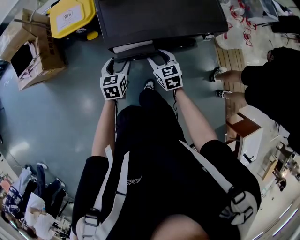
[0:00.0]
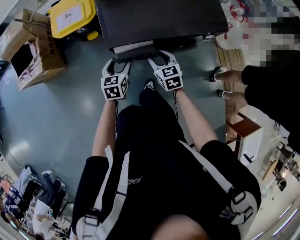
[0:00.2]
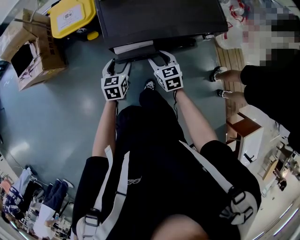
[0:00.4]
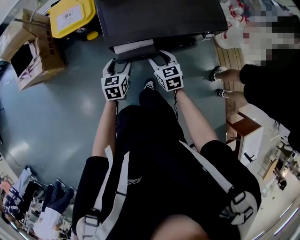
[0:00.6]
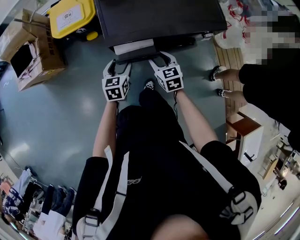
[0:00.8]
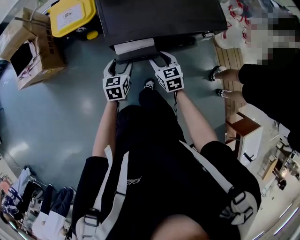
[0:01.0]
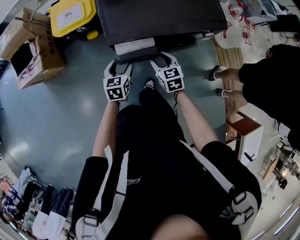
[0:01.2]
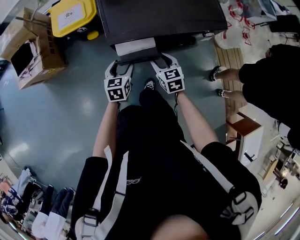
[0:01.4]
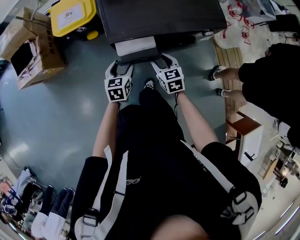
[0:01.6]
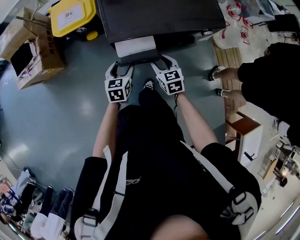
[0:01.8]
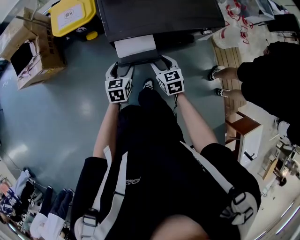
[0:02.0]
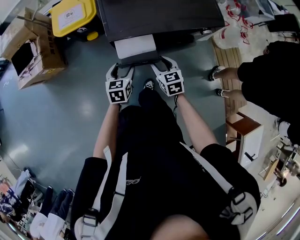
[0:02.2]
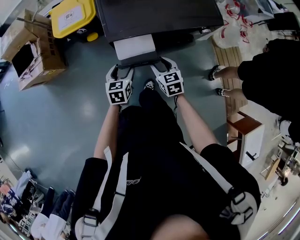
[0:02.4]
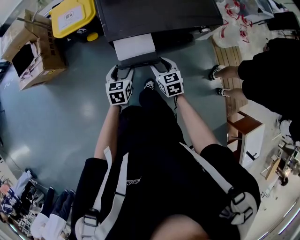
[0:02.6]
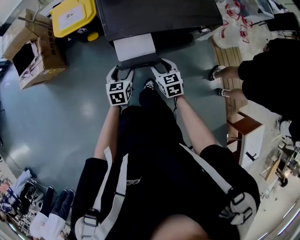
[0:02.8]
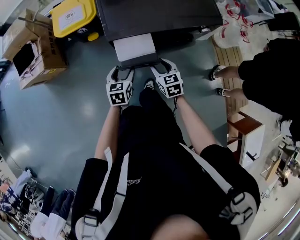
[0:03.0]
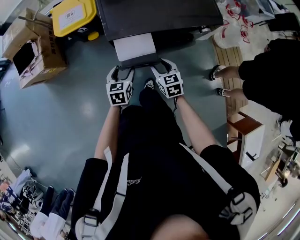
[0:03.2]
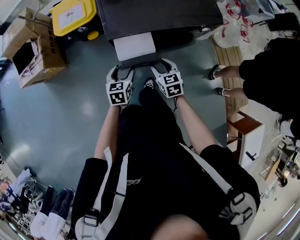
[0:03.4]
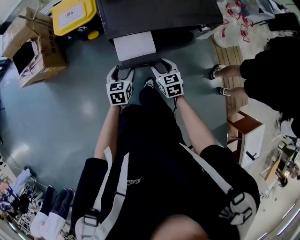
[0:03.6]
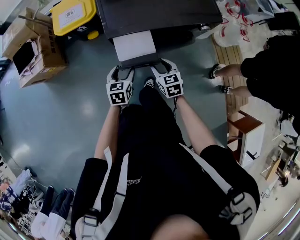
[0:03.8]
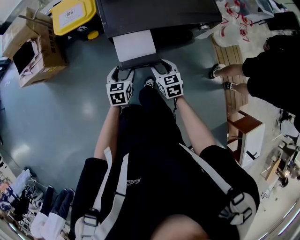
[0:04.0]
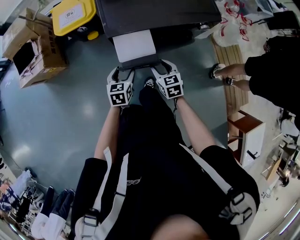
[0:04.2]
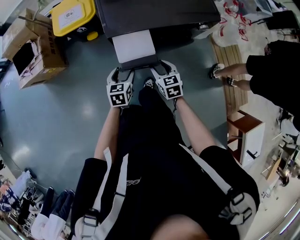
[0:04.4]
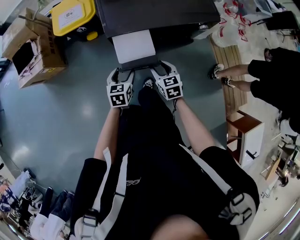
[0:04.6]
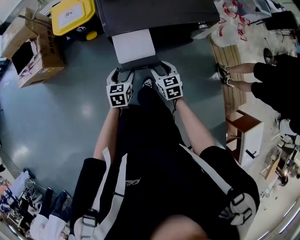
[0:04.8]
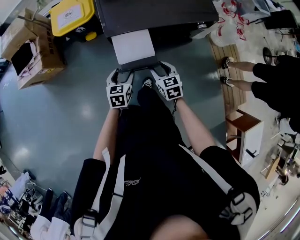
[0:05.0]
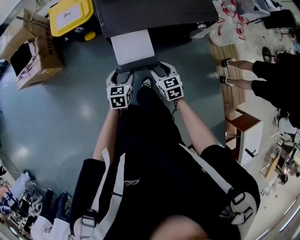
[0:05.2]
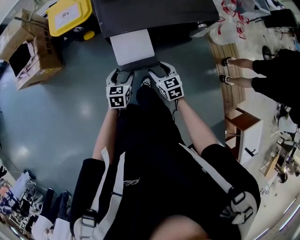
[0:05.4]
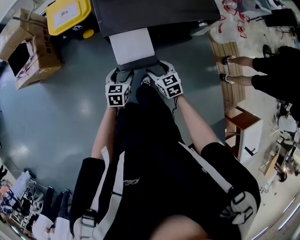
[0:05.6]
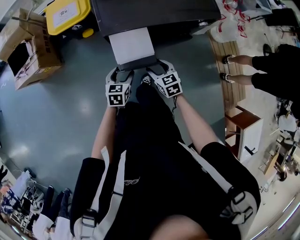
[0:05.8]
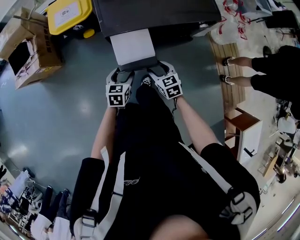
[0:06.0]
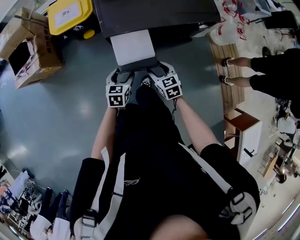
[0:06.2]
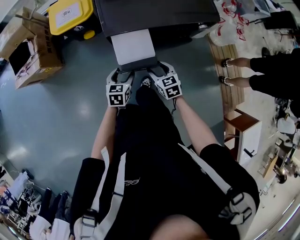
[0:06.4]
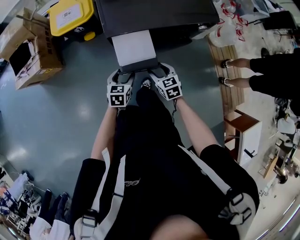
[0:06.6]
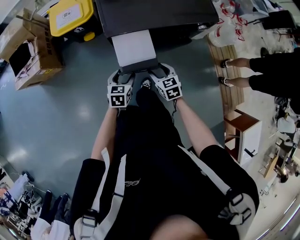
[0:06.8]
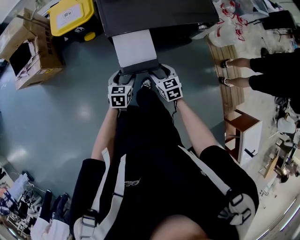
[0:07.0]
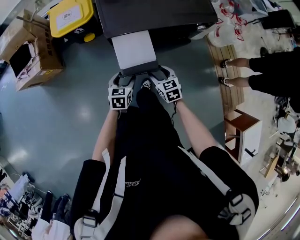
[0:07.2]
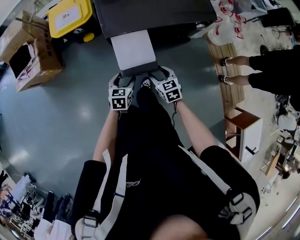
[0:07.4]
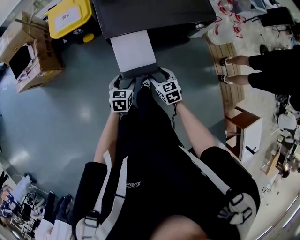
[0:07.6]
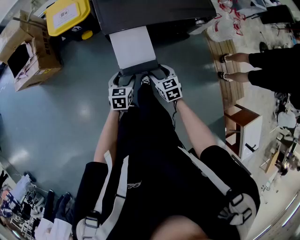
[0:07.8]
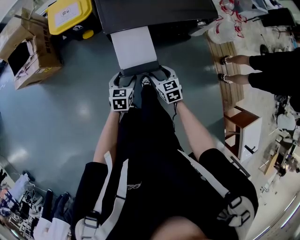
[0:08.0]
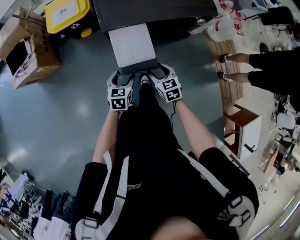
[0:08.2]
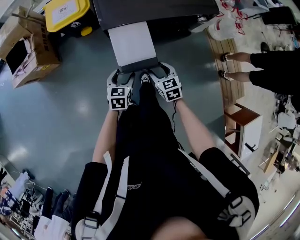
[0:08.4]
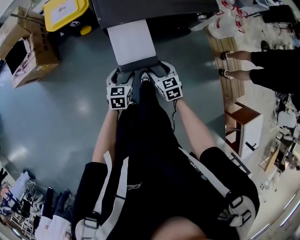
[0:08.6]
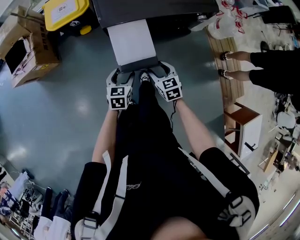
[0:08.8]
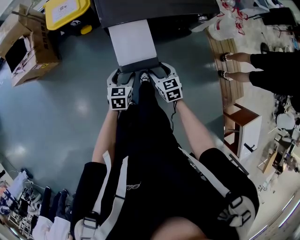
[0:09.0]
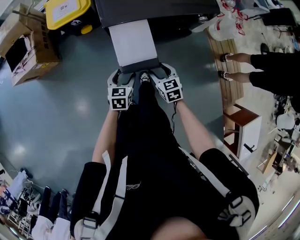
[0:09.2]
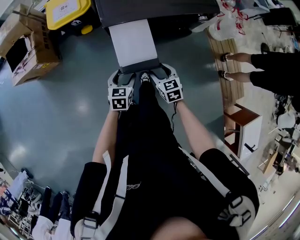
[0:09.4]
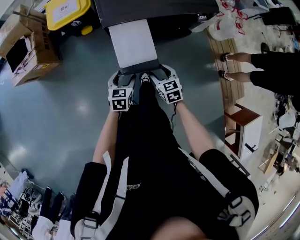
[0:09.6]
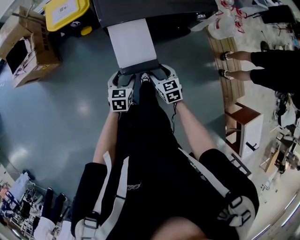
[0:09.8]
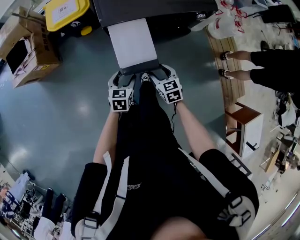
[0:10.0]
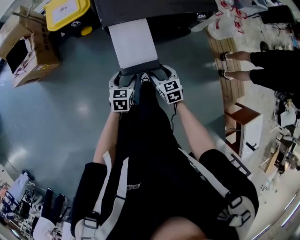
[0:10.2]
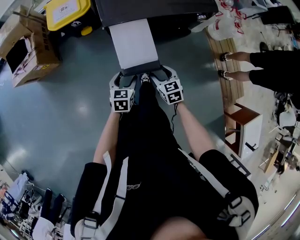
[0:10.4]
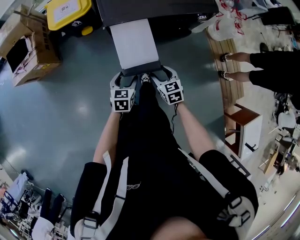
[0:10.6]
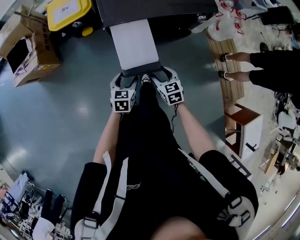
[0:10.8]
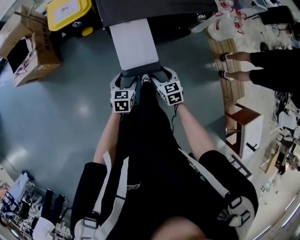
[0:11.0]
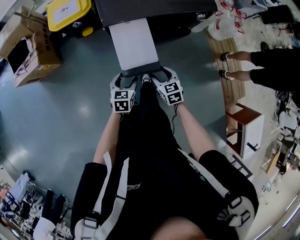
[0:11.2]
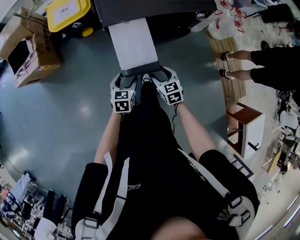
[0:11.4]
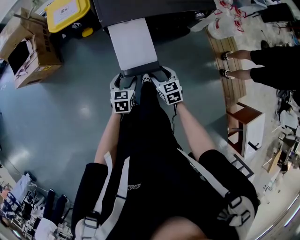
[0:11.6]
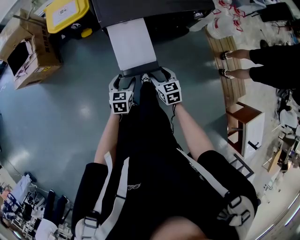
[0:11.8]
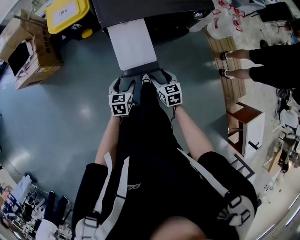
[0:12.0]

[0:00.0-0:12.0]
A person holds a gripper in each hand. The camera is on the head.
0.0 to 1.6 s: The grippers make only small movements.
1.6 to 3.0 s: The grippers stay close to where they were, moving slightly.
3.0 to 6.0 s: The grippers make only small movements.
6.0 to 7.6 s: The grippers make only small movements.
7.6 to 9.0 s: Both grippers stay put.
9.0 to 12.0 s: The grippers stay close to where they were, moving slightly.

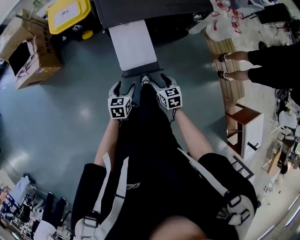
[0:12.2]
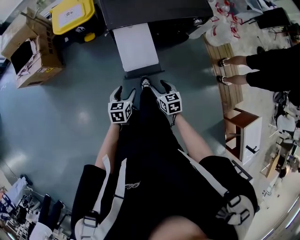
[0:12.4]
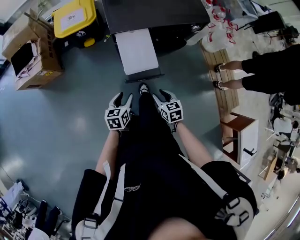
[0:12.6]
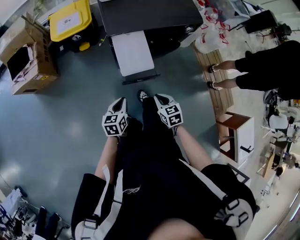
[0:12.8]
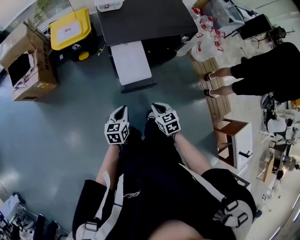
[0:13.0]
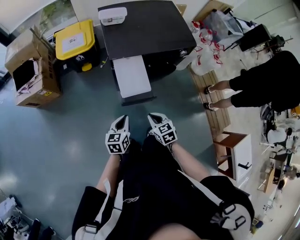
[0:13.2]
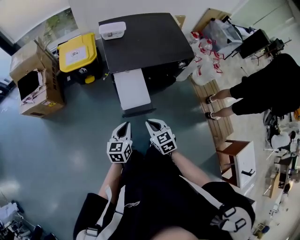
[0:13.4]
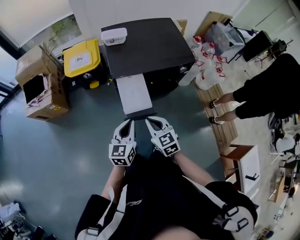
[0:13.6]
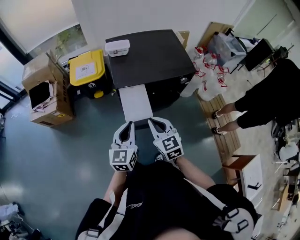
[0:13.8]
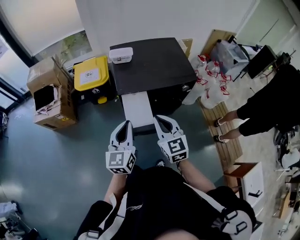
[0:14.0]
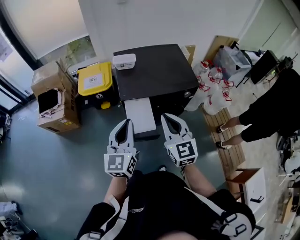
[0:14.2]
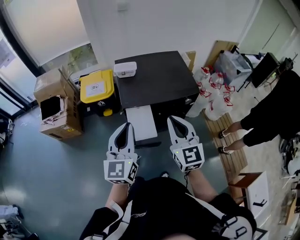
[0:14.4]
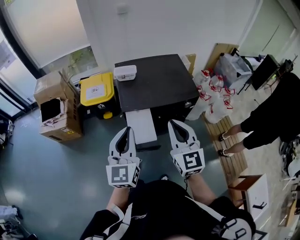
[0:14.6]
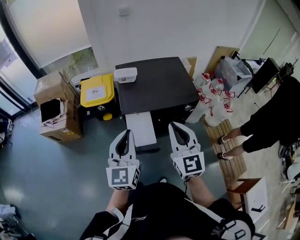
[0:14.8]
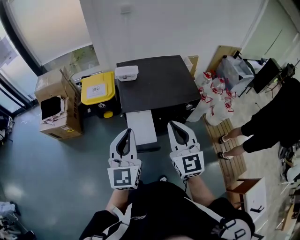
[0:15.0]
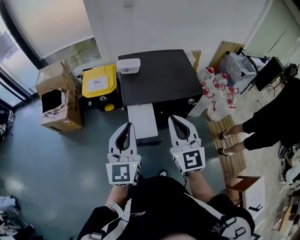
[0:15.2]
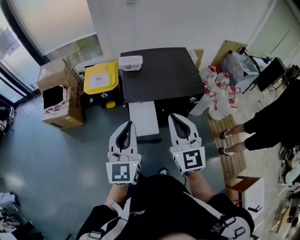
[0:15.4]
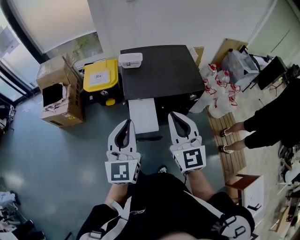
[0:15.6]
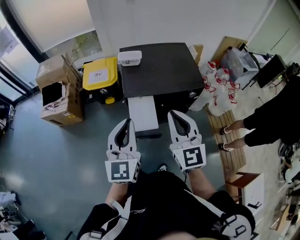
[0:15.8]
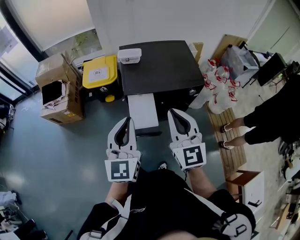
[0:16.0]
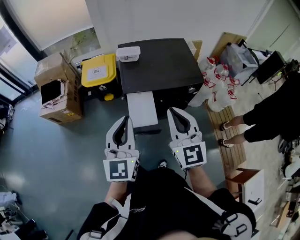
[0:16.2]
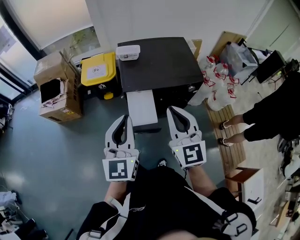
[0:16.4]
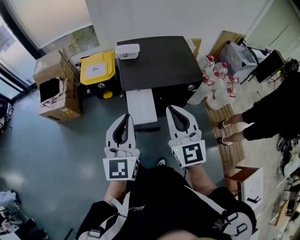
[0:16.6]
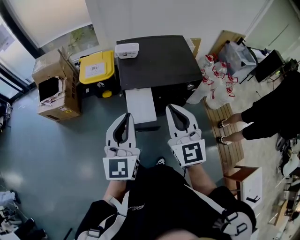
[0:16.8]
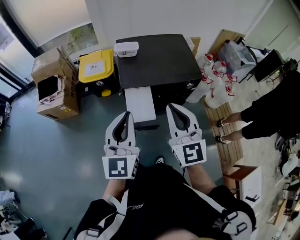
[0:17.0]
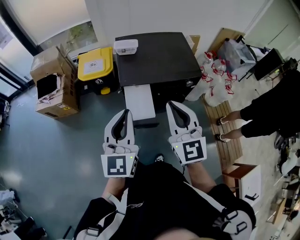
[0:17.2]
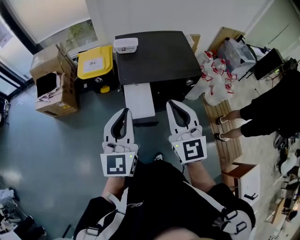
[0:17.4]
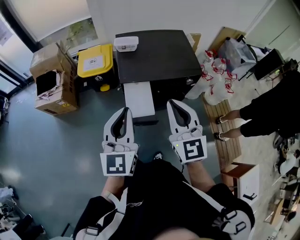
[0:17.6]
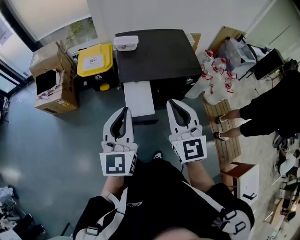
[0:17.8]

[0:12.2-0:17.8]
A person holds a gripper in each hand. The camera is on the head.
12.2 to 13.6 s: The grippers both shift upward by roughly 25 cm. The left gripper swivels approximately 30 degrees, and closes. The right gripper rotates approximately 20 degrees, and closes its fingers.
13.6 to 15.0 s: Both grippers move upward, about 25 cm. The left gripper rotates approximately 30 degrees; the right gripper rotates approximately 30 degrees.
15.0 to 16.4 s: The grippers move only a little.
16.4 to 17.8 s: Both grippers stay about where they are.

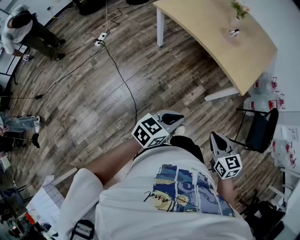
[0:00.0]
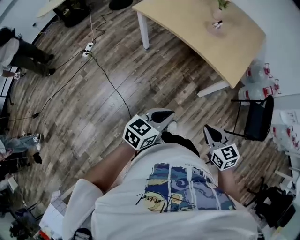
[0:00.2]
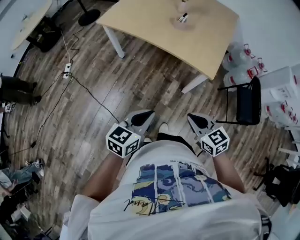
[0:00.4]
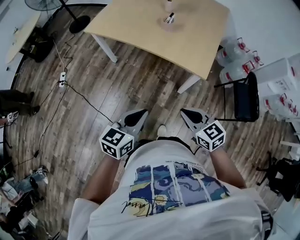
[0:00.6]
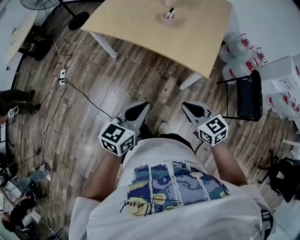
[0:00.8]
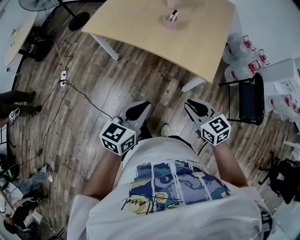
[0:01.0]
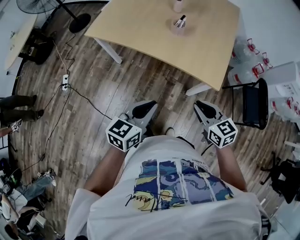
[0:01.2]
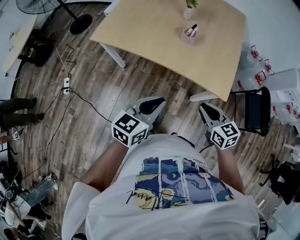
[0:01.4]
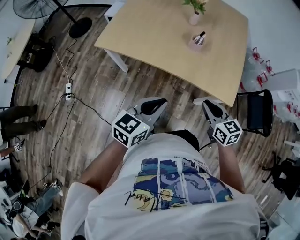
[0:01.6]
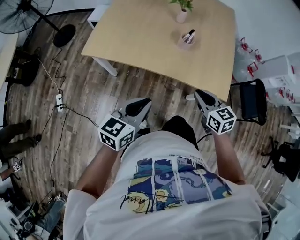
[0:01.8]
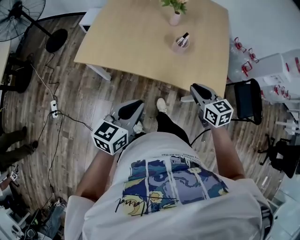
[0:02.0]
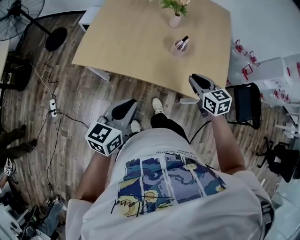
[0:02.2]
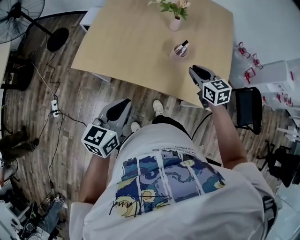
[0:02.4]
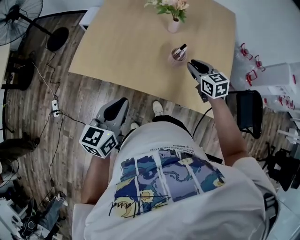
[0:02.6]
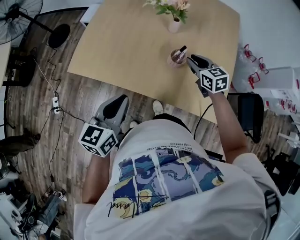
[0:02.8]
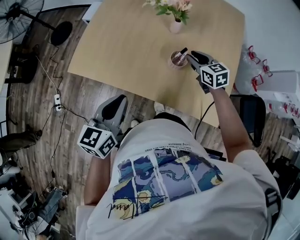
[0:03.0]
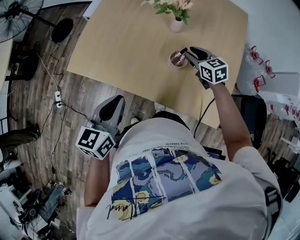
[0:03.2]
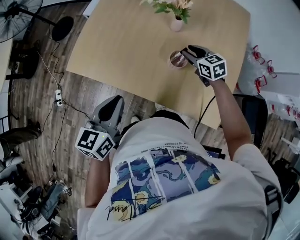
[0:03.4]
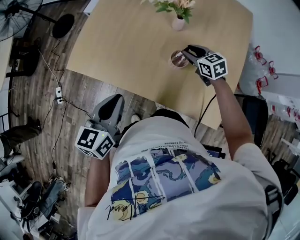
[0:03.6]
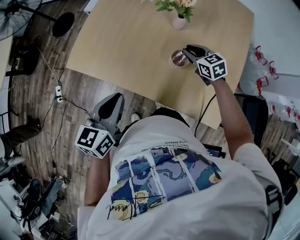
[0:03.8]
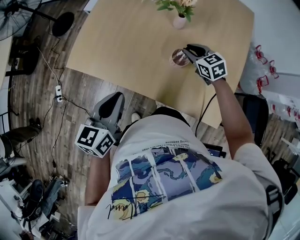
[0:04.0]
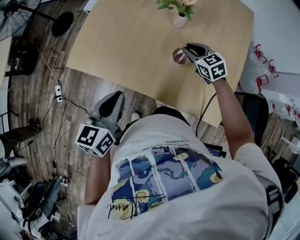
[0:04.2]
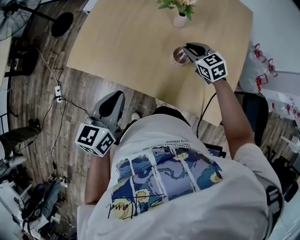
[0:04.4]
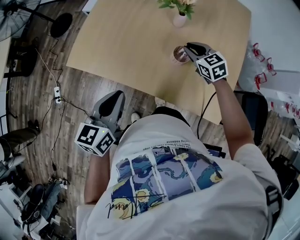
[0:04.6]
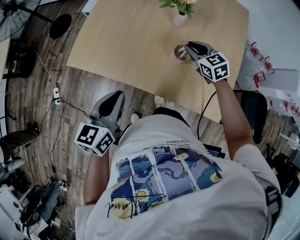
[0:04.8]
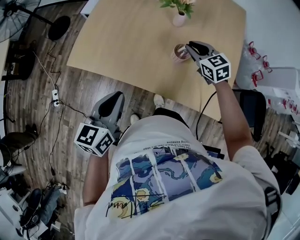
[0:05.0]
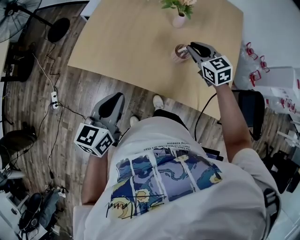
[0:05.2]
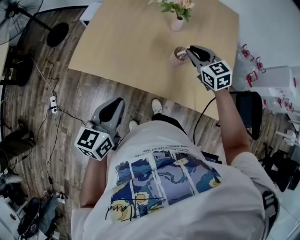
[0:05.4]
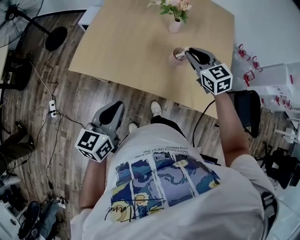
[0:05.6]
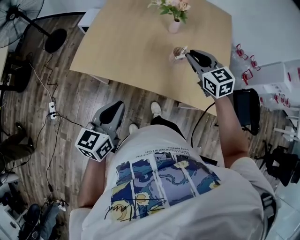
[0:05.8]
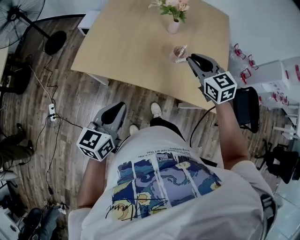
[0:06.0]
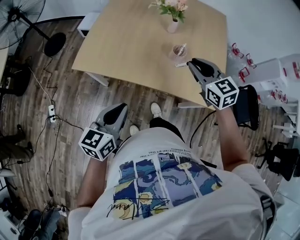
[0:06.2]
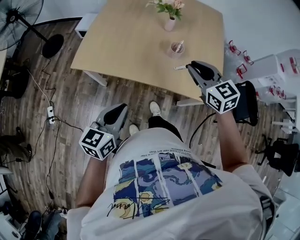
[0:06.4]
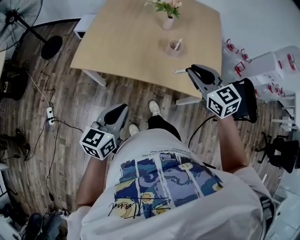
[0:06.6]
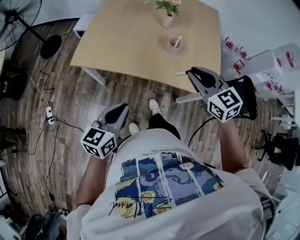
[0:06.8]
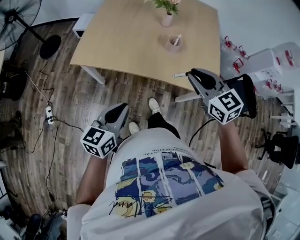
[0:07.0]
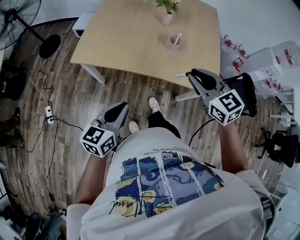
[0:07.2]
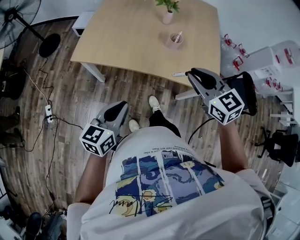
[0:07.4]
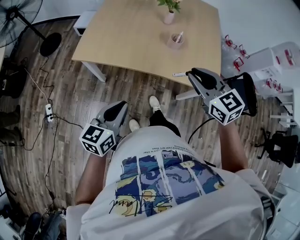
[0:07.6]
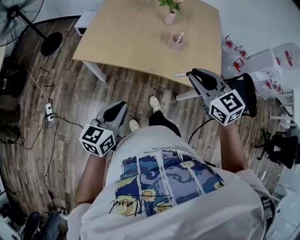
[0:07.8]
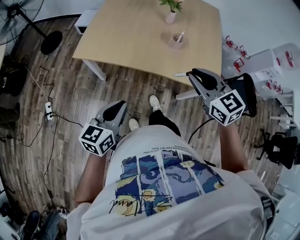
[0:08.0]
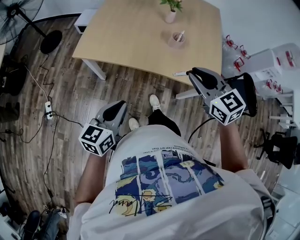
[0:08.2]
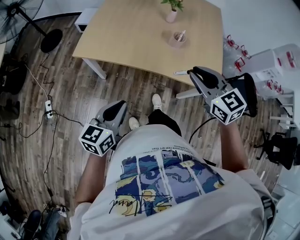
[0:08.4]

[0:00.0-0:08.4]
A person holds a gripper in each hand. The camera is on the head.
0.0 to 1.4 s: Both grippers move forward, roughly 30 cm.
1.4 to 2.8 s: The right gripper travels forward by about 40 cm, while the left gripper is displaced forward and to the left by roughly 25 cm.
2.8 to 4.2 s: The right gripper travels forward by some 5 cm.
4.2 to 5.6 s: The right gripper is displaced upward and backward by about 15 cm. The left gripper moves backward and to the left, some 10 cm.
5.6 to 7.0 s: The left gripper shifts roughly 10 cm backward. Meanwhile the right gripper shifts about 25 cm backward.
7.0 to 8.4 s: There are only small adjustments of the grippers.
